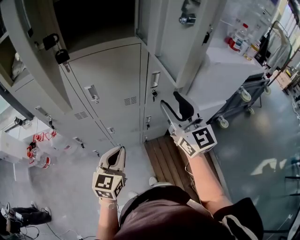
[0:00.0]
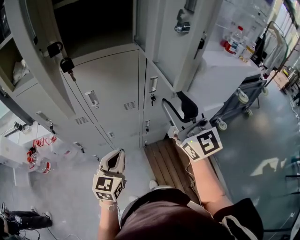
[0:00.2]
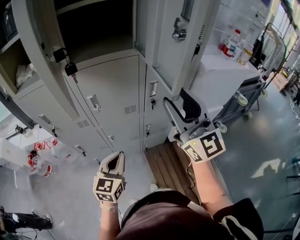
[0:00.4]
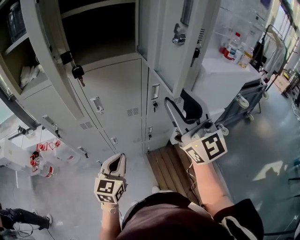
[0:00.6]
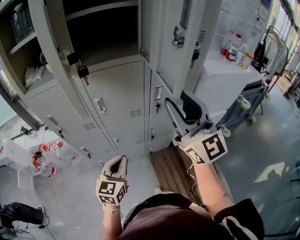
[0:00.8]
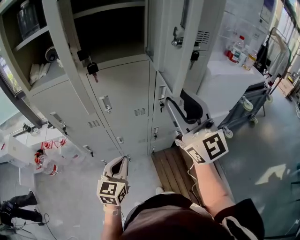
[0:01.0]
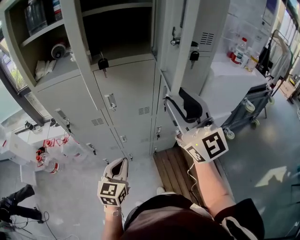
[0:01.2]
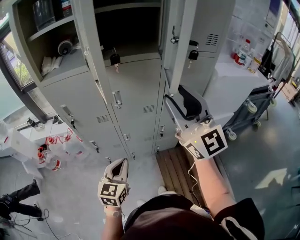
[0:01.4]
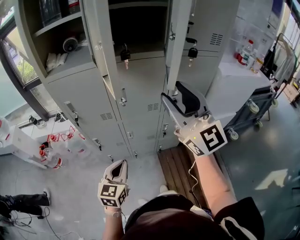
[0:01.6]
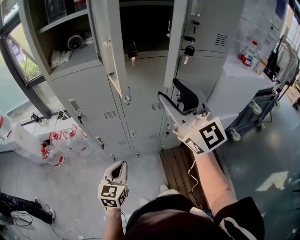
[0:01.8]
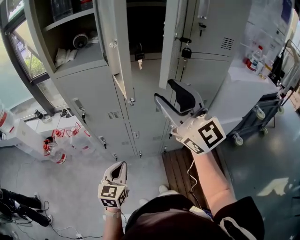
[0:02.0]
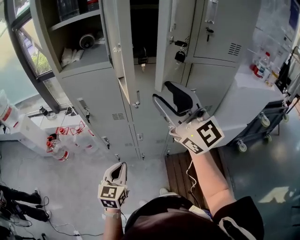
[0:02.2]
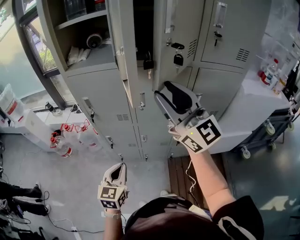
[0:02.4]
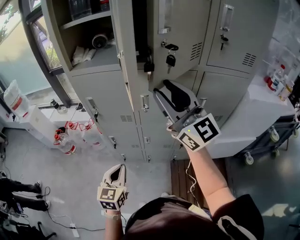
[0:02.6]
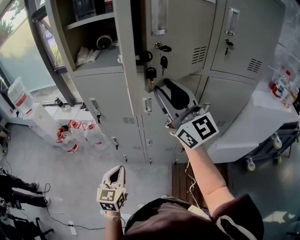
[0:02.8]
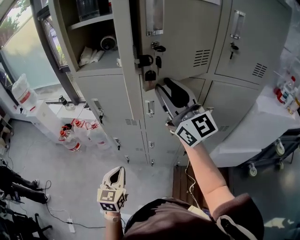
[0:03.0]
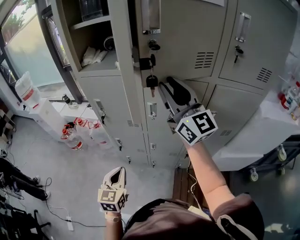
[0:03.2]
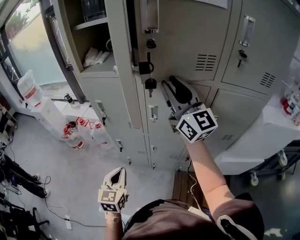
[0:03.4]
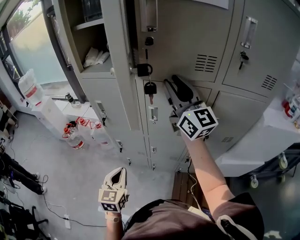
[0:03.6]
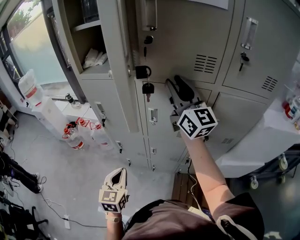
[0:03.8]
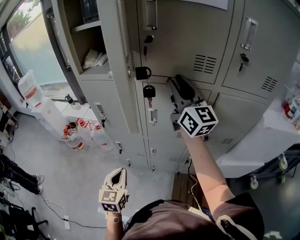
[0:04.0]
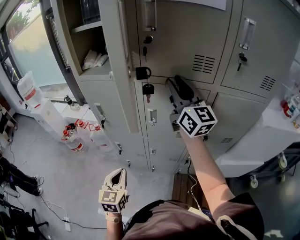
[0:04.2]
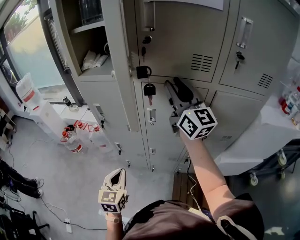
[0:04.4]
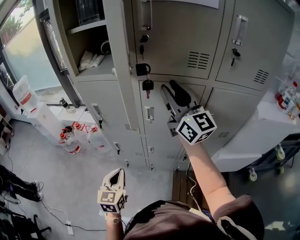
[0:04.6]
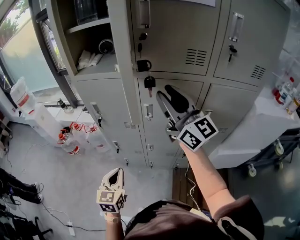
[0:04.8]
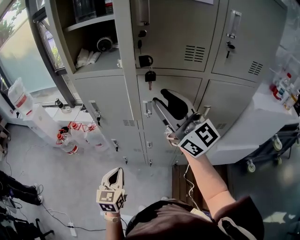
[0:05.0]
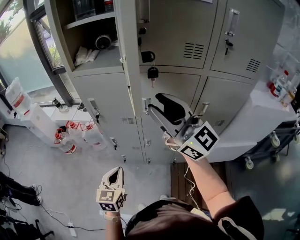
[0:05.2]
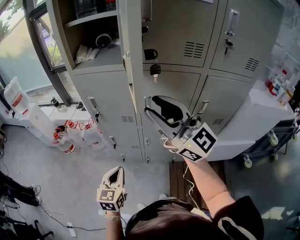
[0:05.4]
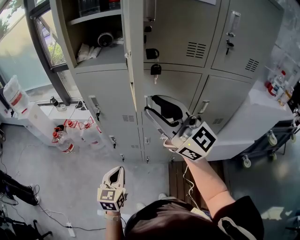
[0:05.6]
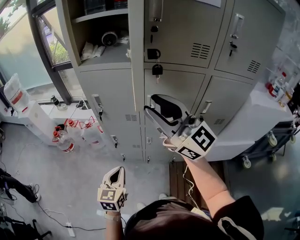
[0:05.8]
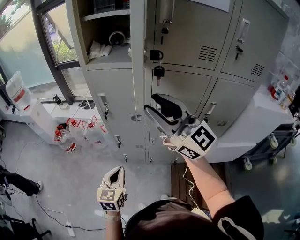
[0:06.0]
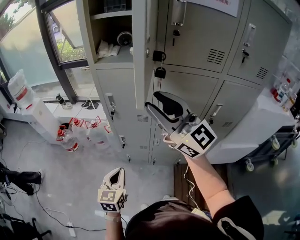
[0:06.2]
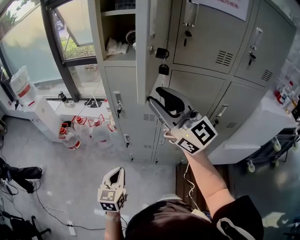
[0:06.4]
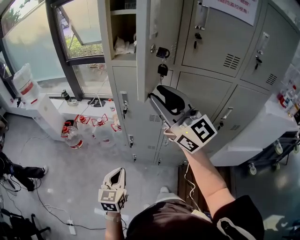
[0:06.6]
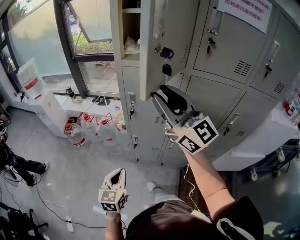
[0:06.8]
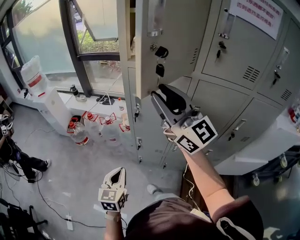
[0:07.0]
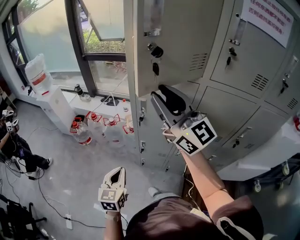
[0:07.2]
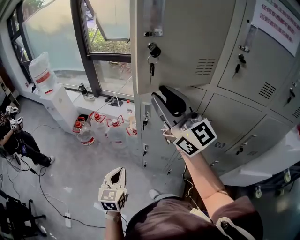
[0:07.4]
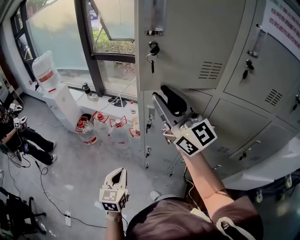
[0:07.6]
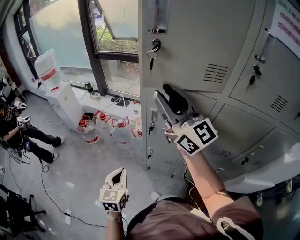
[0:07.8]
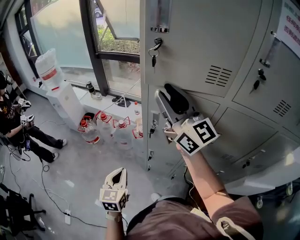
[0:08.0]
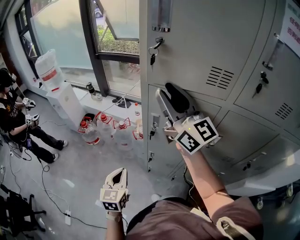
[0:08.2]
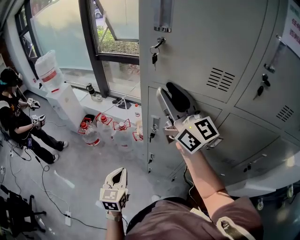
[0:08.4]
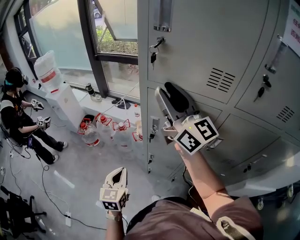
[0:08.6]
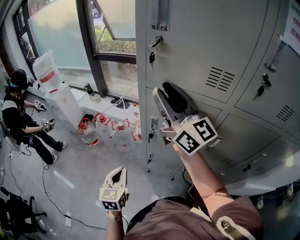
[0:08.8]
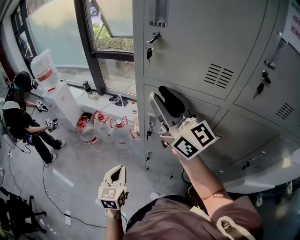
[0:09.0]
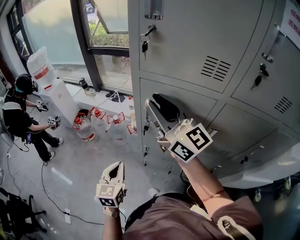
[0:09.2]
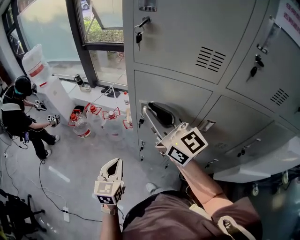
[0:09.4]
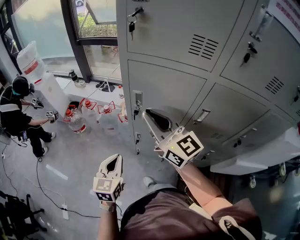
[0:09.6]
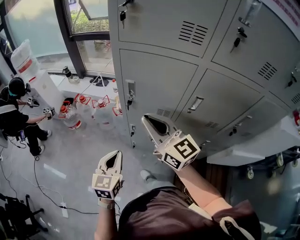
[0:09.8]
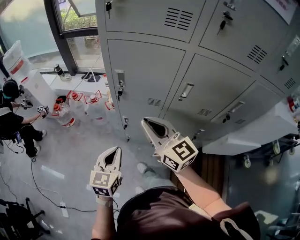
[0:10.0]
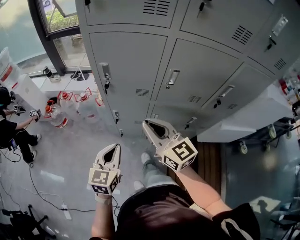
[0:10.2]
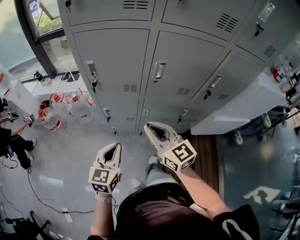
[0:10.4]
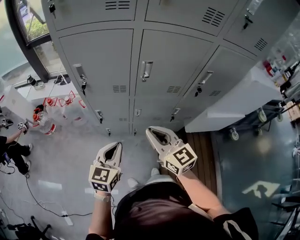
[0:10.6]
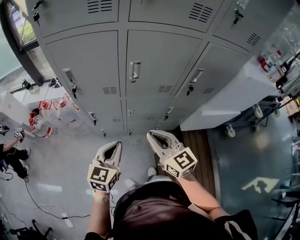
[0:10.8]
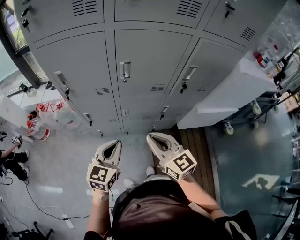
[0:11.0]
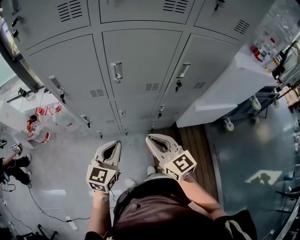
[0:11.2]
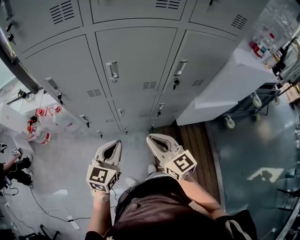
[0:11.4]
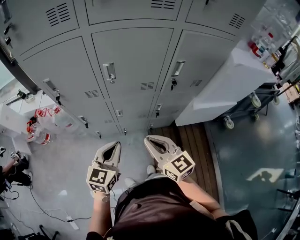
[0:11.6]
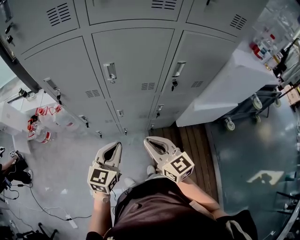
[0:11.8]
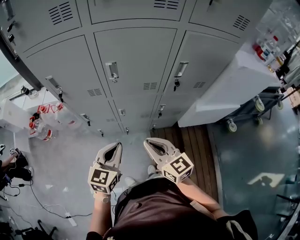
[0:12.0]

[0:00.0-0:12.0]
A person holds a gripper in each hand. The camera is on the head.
0.0 to 1.6 s: The left gripper moves to the left and backward, roughly 15 cm, while the right gripper shifts roughly 20 cm upward, to the left and backward, and turns by some 20 degrees.
1.6 to 3.0 s: The left gripper ends up about 5 cm from where it was, and changes its angle by some 20 degrees; the right gripper travels forward by approximately 15 cm, and rotates roughly 30 degrees.
3.0 to 4.4 s: The right gripper travels forward by roughly 10 cm.
4.4 to 6.0 s: The left gripper shifts approximately 10 cm to the left. The right gripper heads to the left and backward, covering approximately 20 cm, and swivels about 20 degrees.
6.0 to 7.6 s: The two grippers go some 20 cm forward and to the left.
7.6 to 9.0 s: Both grippers move forward, approximately 5 cm.
9.0 to 10.4 s: The left gripper heads backward and to the right, covering roughly 20 cm, and swivels some 30 degrees; the right gripper shifts approximately 40 cm downward, backward and to the right, and angles its fingers downward, by about 30 degrees.
10.4 to 12.0 s: The grippers both shift to the right by approximately 15 cm.

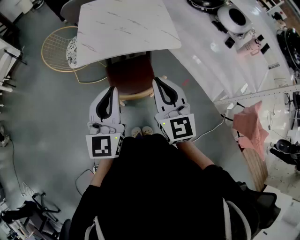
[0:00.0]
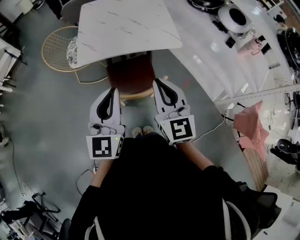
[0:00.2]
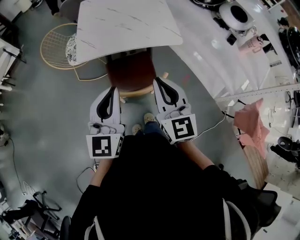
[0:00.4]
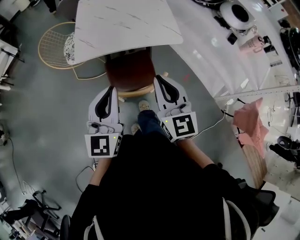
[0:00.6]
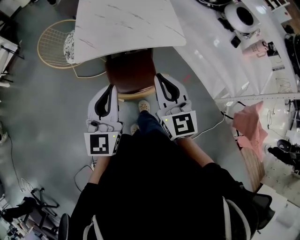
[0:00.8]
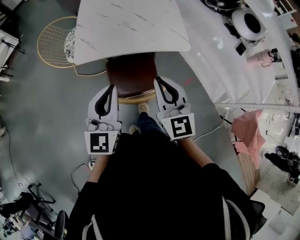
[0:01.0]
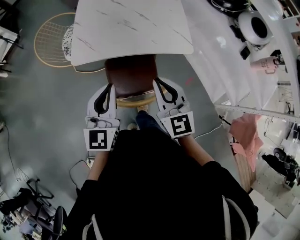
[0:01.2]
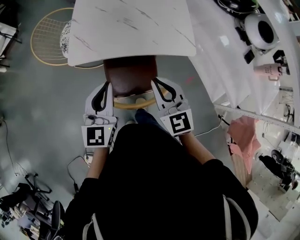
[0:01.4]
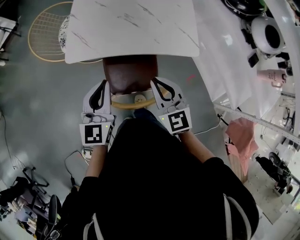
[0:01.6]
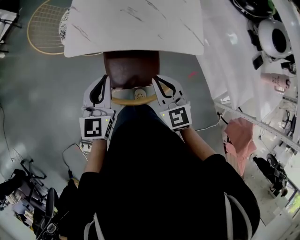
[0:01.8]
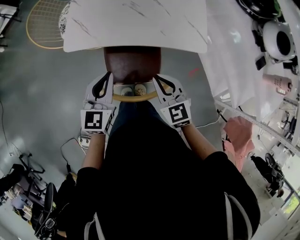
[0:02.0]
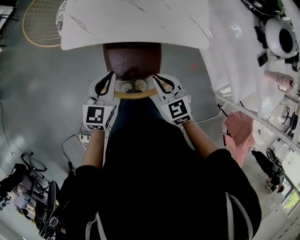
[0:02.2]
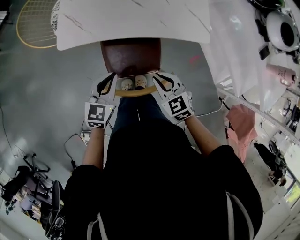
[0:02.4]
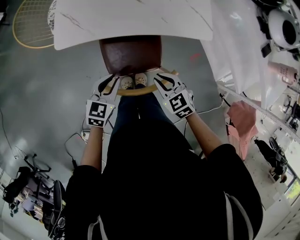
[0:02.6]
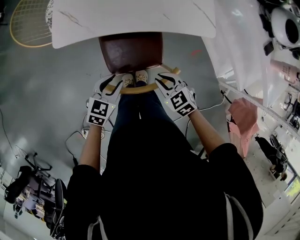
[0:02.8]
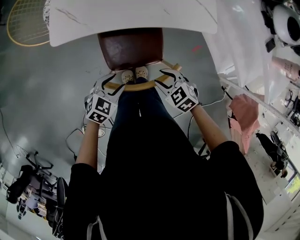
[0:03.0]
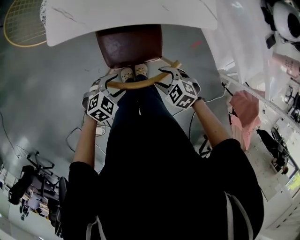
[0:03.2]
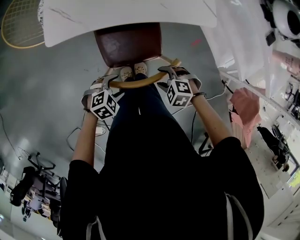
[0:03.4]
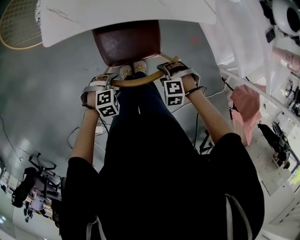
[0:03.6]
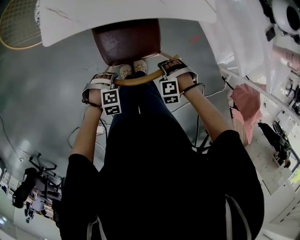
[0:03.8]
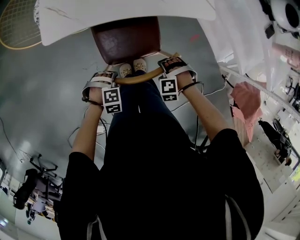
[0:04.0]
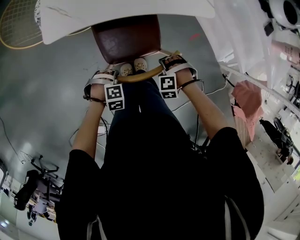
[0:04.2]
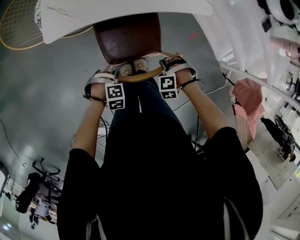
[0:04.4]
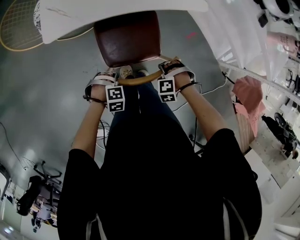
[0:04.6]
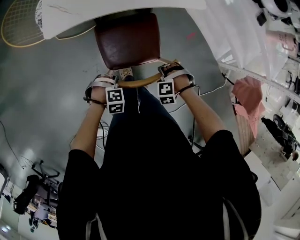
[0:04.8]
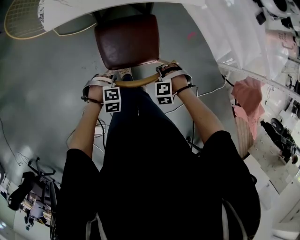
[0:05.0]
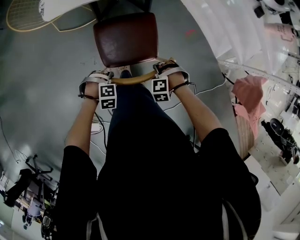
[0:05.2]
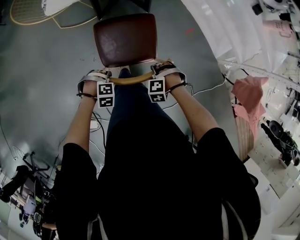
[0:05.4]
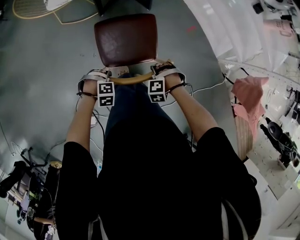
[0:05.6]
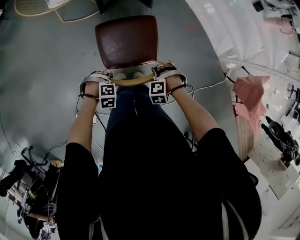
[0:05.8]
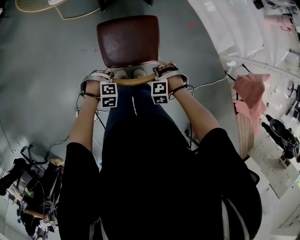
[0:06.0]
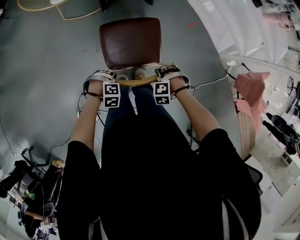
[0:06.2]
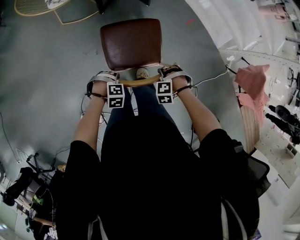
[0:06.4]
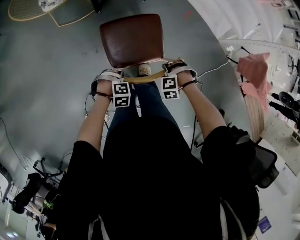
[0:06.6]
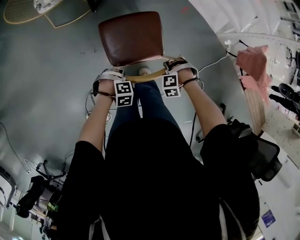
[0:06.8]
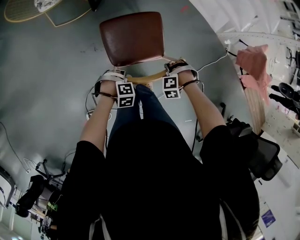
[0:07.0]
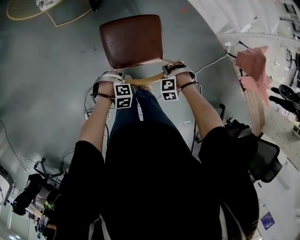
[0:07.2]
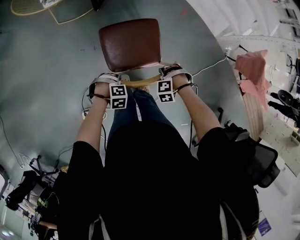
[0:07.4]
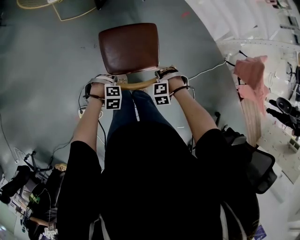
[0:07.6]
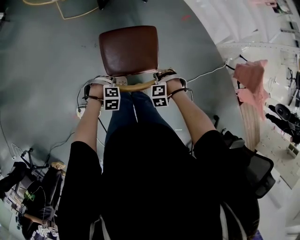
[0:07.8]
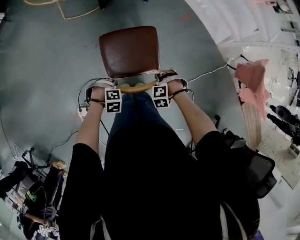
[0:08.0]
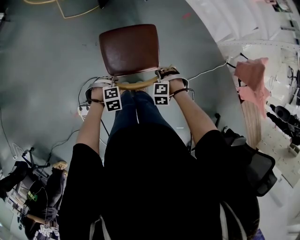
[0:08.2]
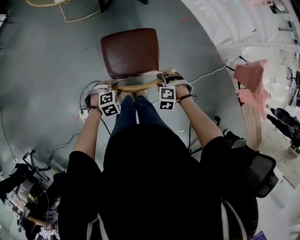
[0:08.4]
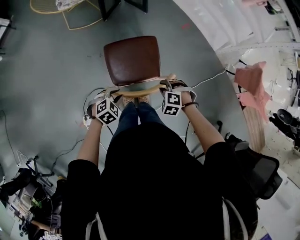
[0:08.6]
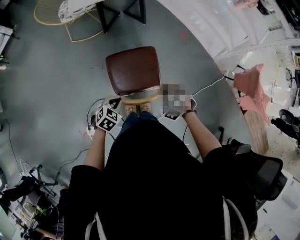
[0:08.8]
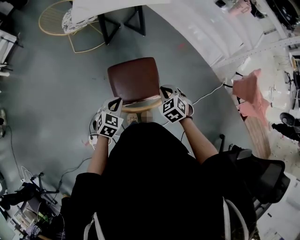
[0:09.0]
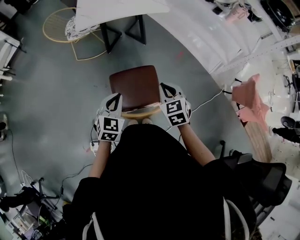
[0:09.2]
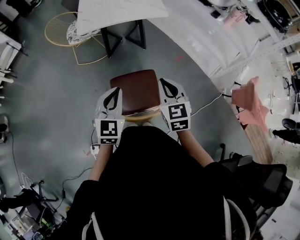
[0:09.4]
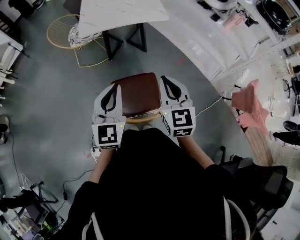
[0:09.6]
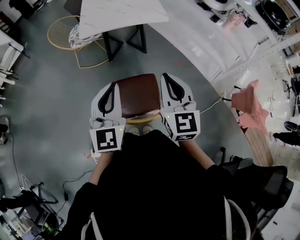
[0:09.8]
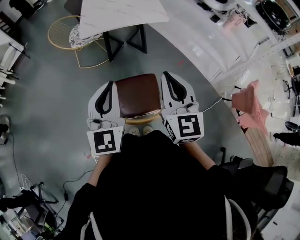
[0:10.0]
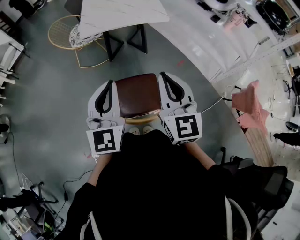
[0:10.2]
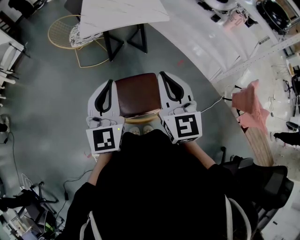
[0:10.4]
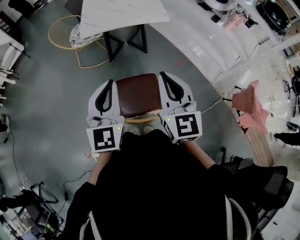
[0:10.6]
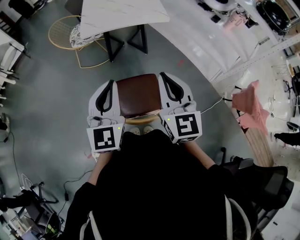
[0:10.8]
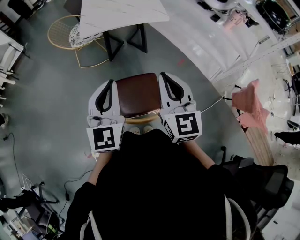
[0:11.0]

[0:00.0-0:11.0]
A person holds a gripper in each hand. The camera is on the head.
0.0 to 1.6 s: The grippers both shift forward and downward by about 20 cm. The right gripper changes its angle by roughly 20 degrees.
1.6 to 3.2 s: The grippers both shift downward by some 25 cm. The right gripper points its fingers roughly 40 degrees further downward, and opens. The left gripper tips its fingers downward by approximately 40 degrees, and opens.
3.2 to 4.8 s: The right gripper moves about 10 cm, and swivels about 50 degrees. Meanwhile the left gripper travels downward by some 10 cm, rotates approximately 50 degrees, and closes.
4.8 to 6.2 s: The right gripper shifts by approximately 20 cm; the left gripper moves some 20 cm.
6.2 to 7.8 s: The right gripper ends up approximately 15 cm from where it was, while the left gripper ends up some 15 cm from where it was.
7.8 to 9.4 s: The grippers both shift upward by approximately 35 cm. The left gripper points its fingers some 70 degrees further upward, and closes, while the right gripper points its fingers approximately 60 degrees further upward, and closes its fingers.
9.4 to 11.0 s: The grippers both shift upward by approximately 15 cm.

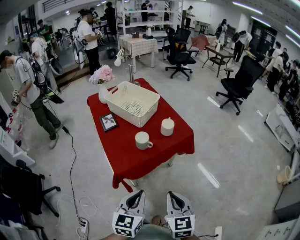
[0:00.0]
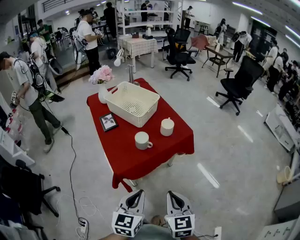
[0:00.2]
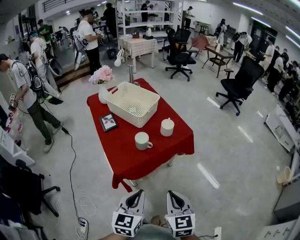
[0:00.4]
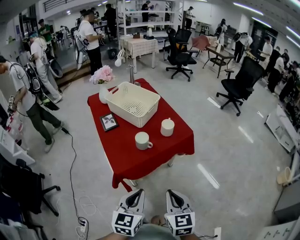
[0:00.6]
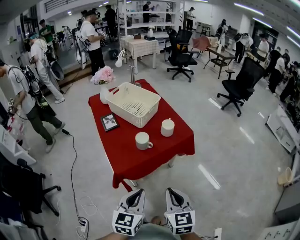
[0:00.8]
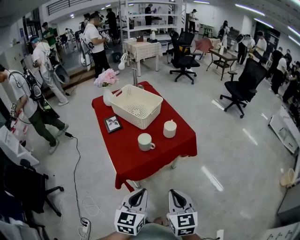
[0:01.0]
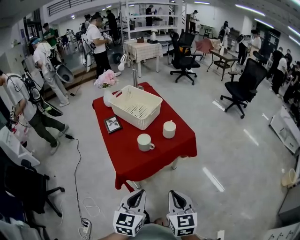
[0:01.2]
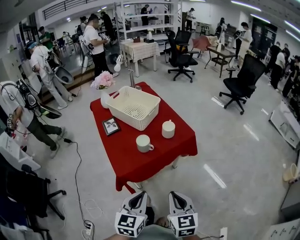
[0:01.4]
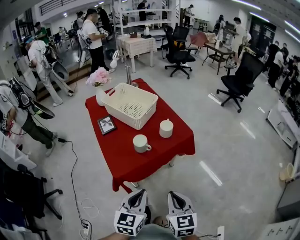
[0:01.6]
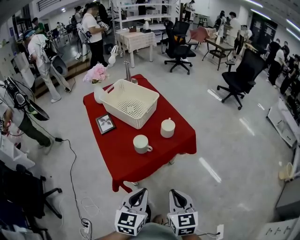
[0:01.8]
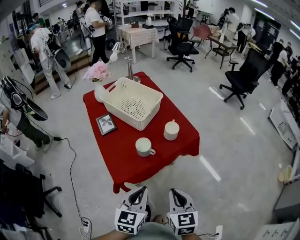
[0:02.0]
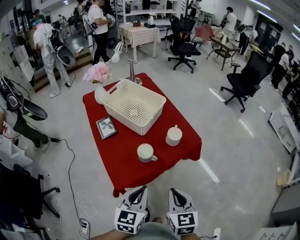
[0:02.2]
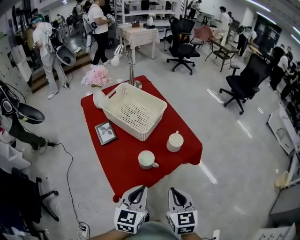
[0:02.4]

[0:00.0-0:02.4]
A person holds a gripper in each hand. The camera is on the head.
0.0 to 1.2 s: The grippers move only a little.
1.2 to 2.4 s: Both grippers move forward, roughly 15 cm.
